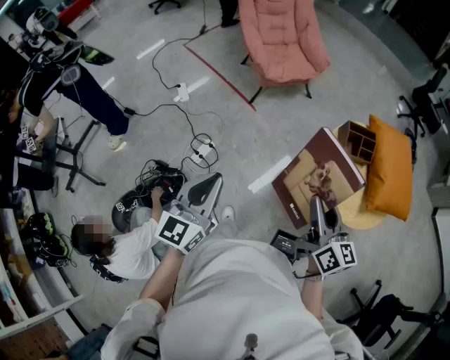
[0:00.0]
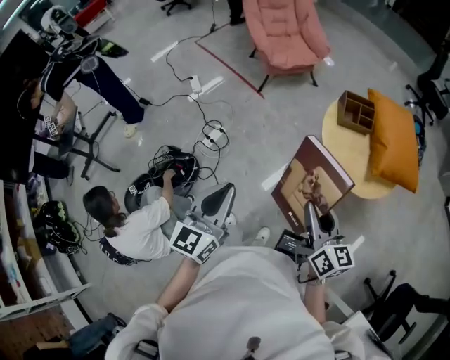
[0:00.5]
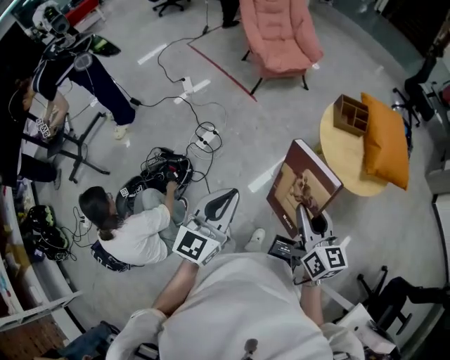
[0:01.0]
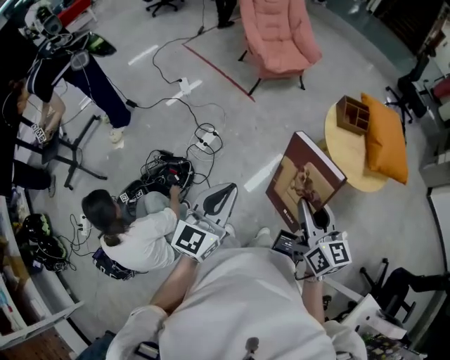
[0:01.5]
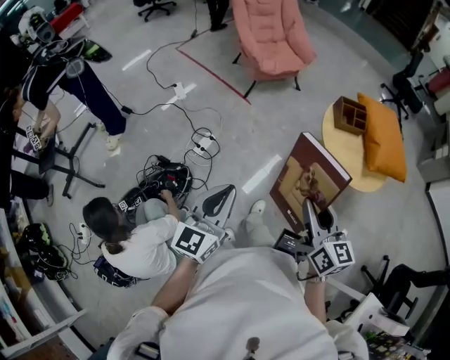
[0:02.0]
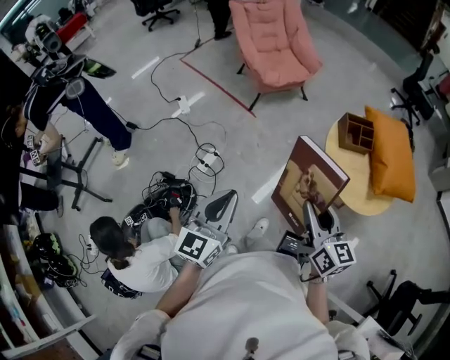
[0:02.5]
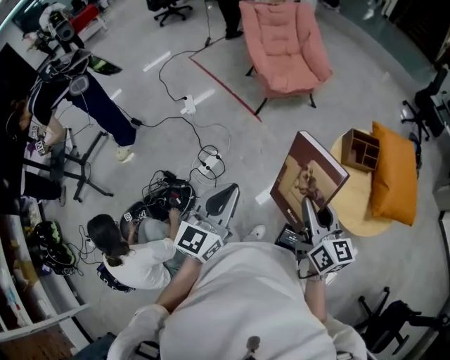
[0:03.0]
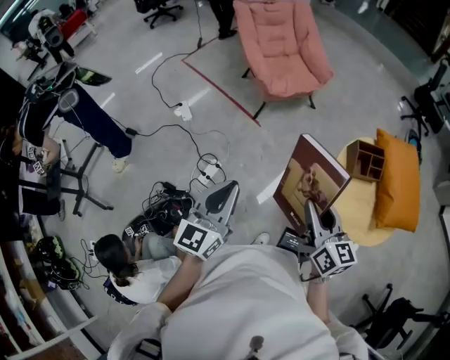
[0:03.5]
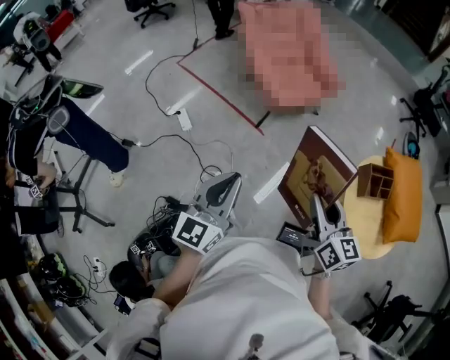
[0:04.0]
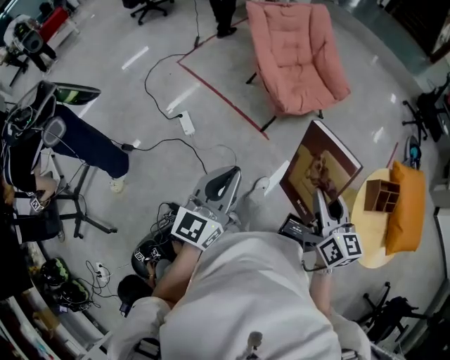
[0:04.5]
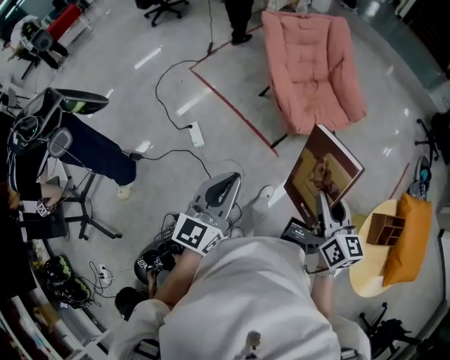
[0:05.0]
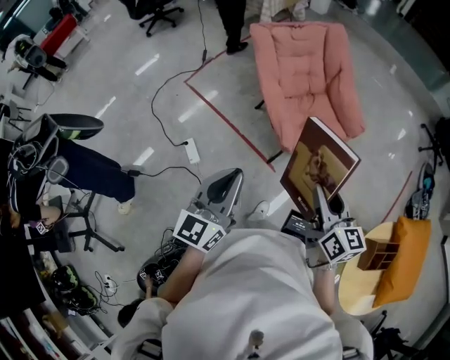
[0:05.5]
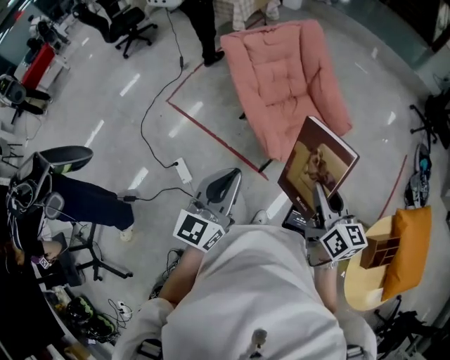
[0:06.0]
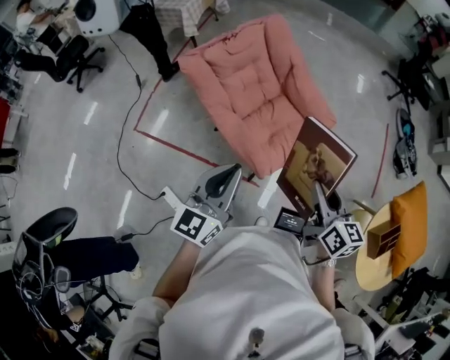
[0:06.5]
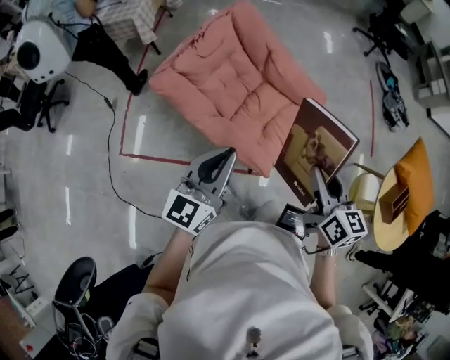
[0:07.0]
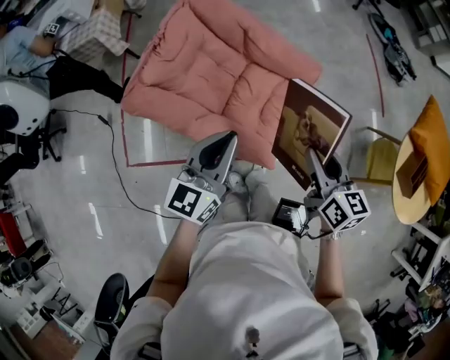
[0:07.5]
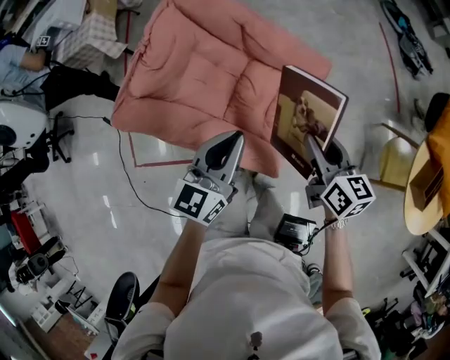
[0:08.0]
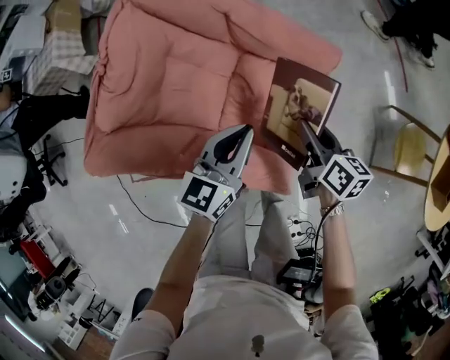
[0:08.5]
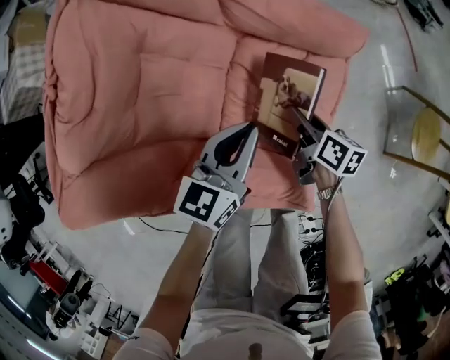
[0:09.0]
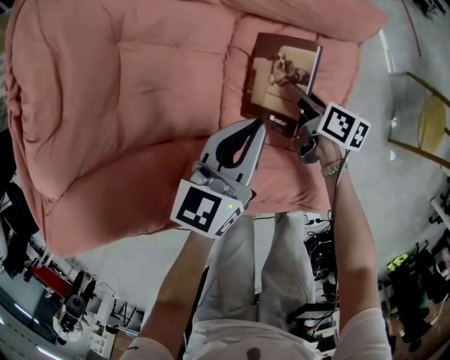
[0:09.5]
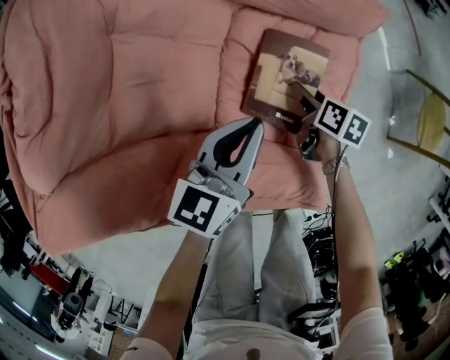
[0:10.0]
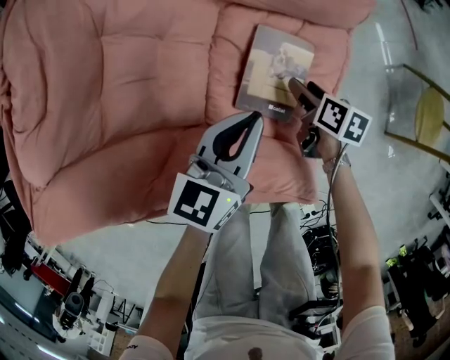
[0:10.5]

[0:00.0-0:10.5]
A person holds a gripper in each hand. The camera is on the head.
0:00.0 to 0:02.0: The left gripper is displaced backward by roughly 20 cm, while the right gripper travels backward and to the left by approximately 25 cm.
0:02.0 to 0:04.0: Both grippers are carried forward, about 40 cm.
0:04.0 to 0:06.5: The two grippers travel together, forward, some 60 cm. The left gripper turns by roughly 20 degrees, while the right gripper turns by some 20 degrees.
0:06.5 to 0:08.5: The right gripper goes approximately 30 cm downward, and rotates some 40 degrees, while the left gripper shifts by approximately 40 cm, and turns by approximately 40 degrees.
0:08.5 to 0:10.5: The left gripper moves downward, about 15 cm; the right gripper heads downward, covering roughly 25 cm, turns by about 20 degrees, and opens up.

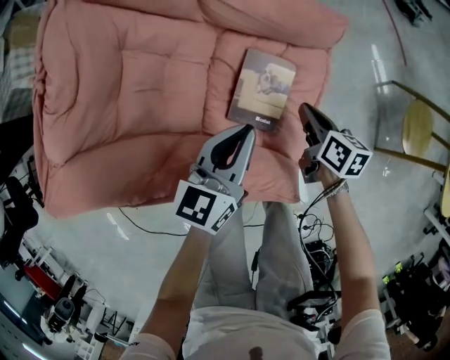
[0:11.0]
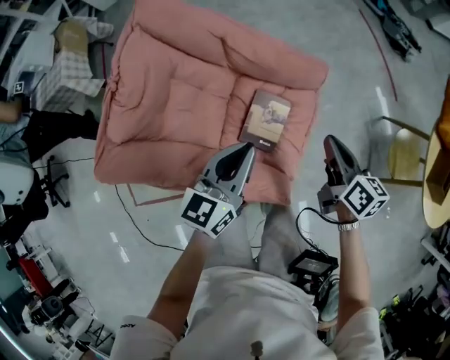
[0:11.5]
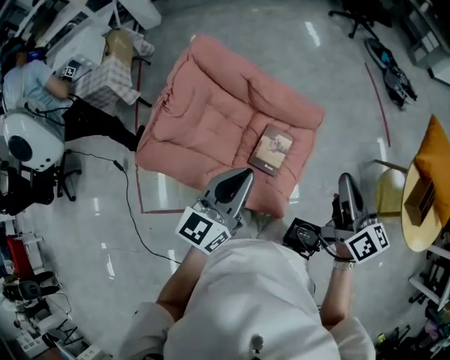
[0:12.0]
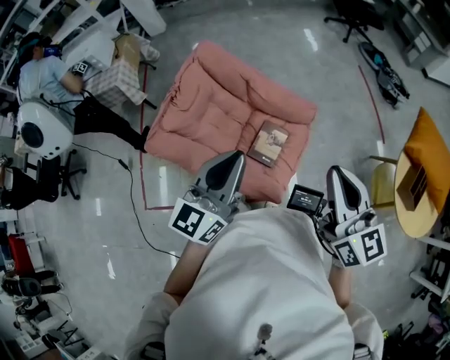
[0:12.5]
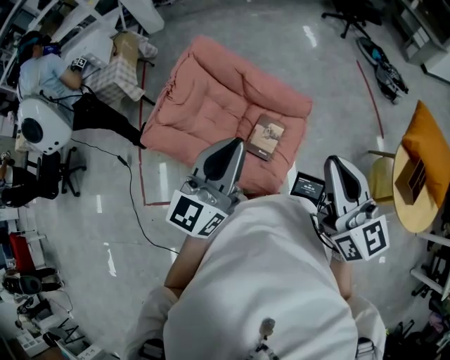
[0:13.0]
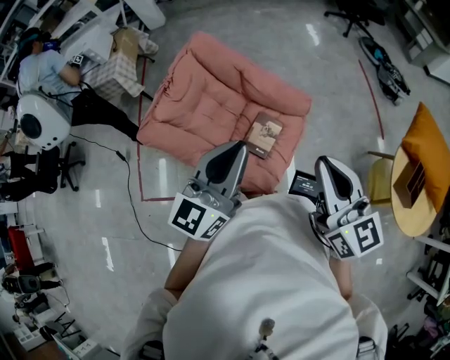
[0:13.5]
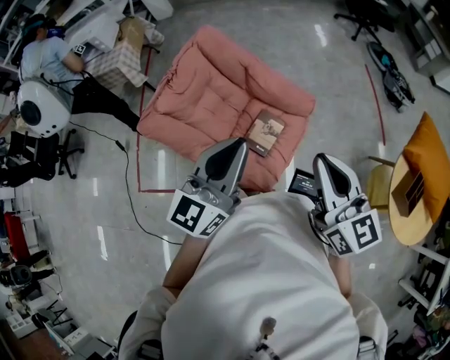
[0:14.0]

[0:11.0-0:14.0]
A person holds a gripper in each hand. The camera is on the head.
0:11.0 to 0:12.5: The two grippers go some 50 cm upward. The left gripper turns by approximately 30 degrees, while the right gripper tilts its fingers roughly 40 degrees upward.
0:12.5 to 0:14.0: The grippers stay close to where they were, moving slightly.

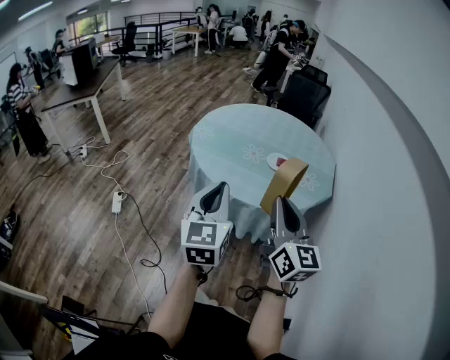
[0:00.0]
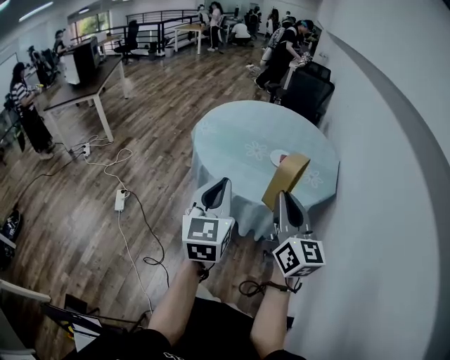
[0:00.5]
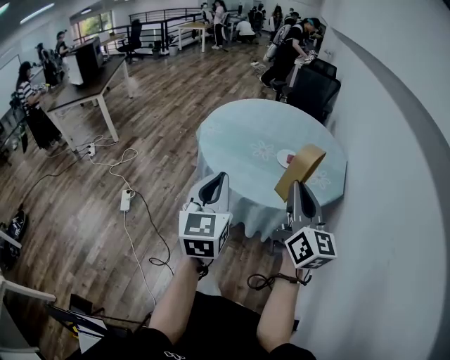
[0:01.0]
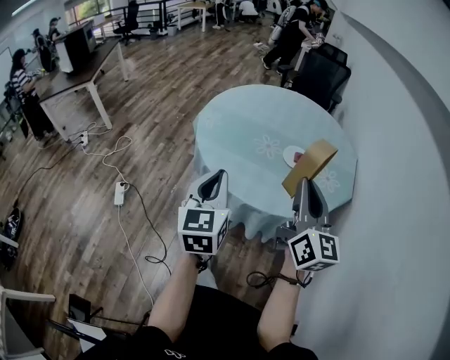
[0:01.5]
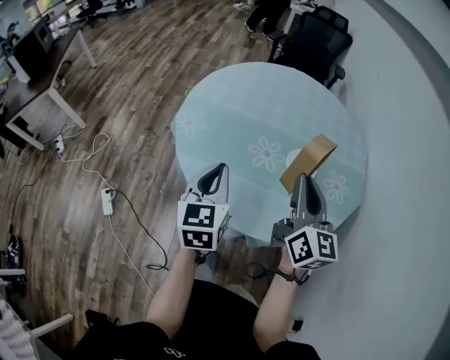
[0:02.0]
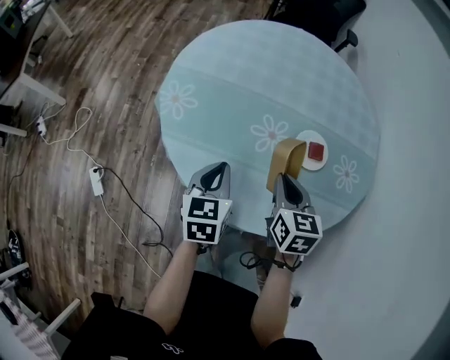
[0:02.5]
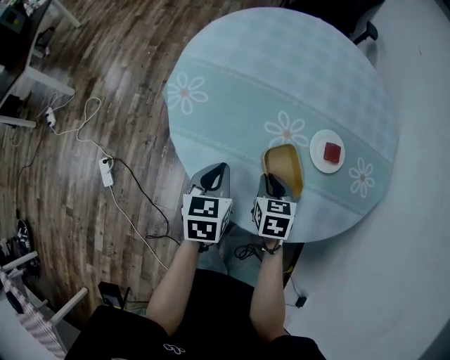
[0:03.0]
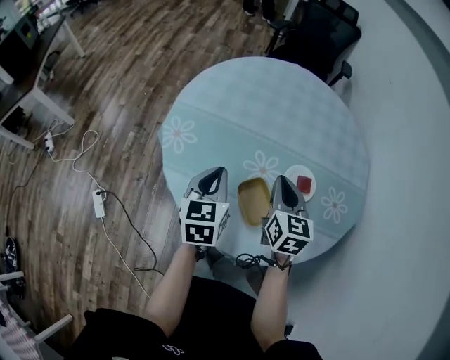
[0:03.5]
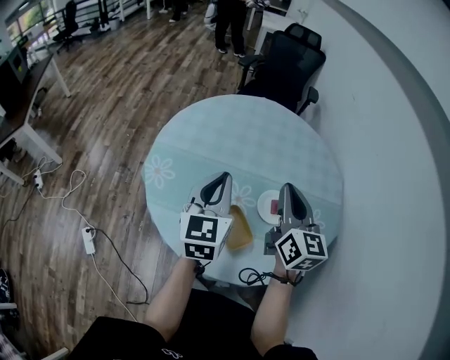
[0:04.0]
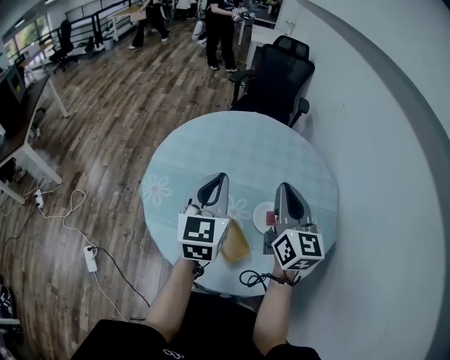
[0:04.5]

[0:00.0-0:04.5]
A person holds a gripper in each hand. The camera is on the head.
0:00.0 to 0:02.0: The two grippers travel together, forward, some 40 cm.
0:02.0 to 0:04.5: The left gripper is displaced forward and to the right by roughly 20 cm, and travels downward and back again, approximately 20 cm each way; the right gripper moves forward, some 15 cm, and reaches roughly 30 cm downward, then returns.

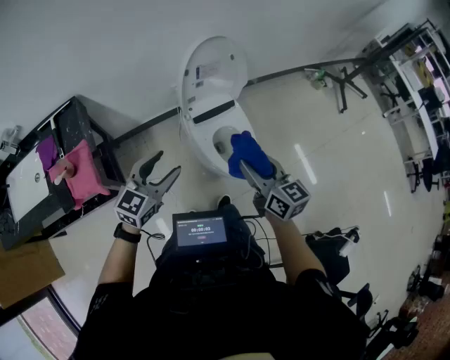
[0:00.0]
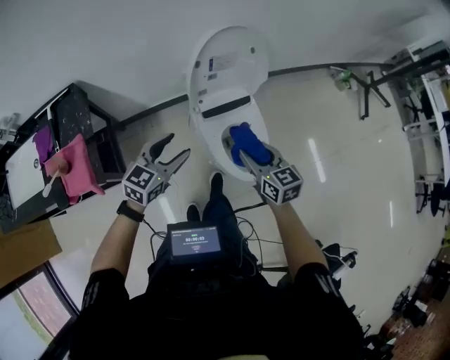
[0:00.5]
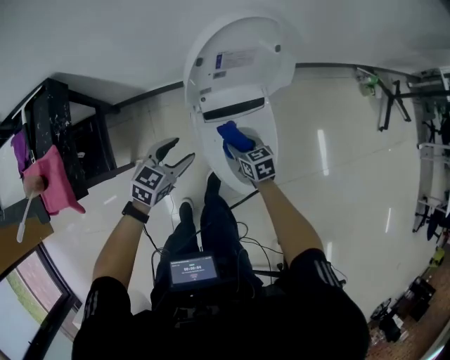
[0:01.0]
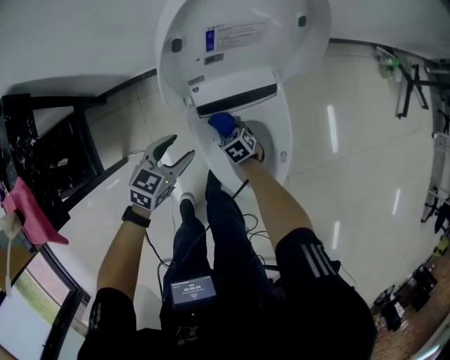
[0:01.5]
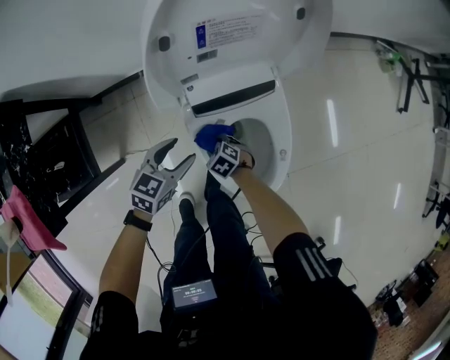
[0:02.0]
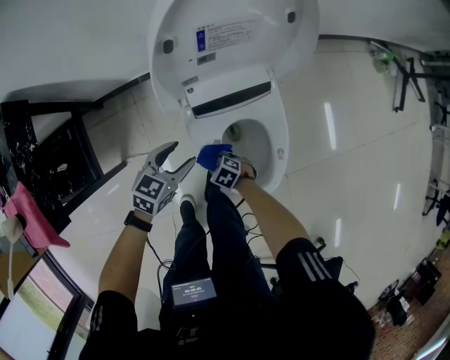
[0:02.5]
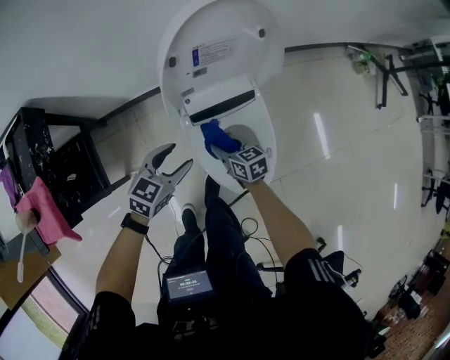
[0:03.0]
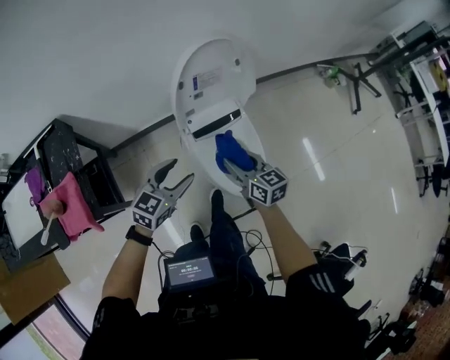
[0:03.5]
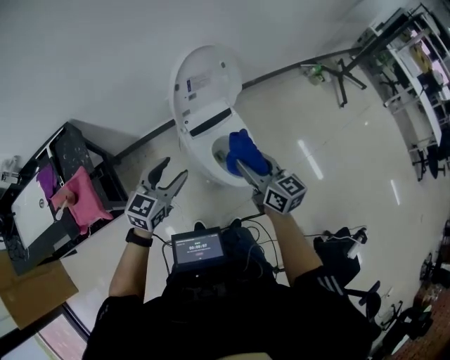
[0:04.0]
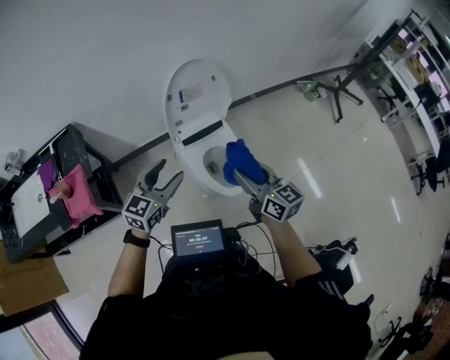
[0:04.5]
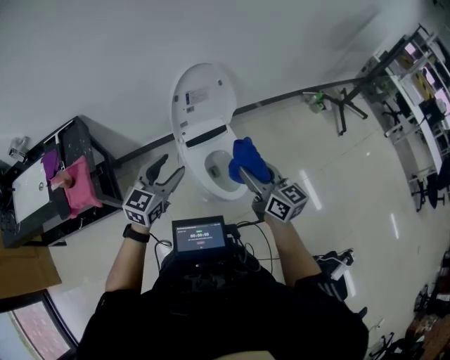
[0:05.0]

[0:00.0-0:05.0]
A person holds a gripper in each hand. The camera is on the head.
0:00.0 to 0:02.5: The right gripper moves downward, approximately 70 cm, and points its fingers roughly 50 degrees further downward; the left gripper is displaced downward by some 40 cm, and rotates roughly 30 degrees.
0:02.5 to 0:05.0: The left gripper moves upward, some 40 cm, and changes its angle by roughly 30 degrees, while the right gripper heads upward, covering roughly 70 cm, and tilts its fingers some 60 degrees upward.

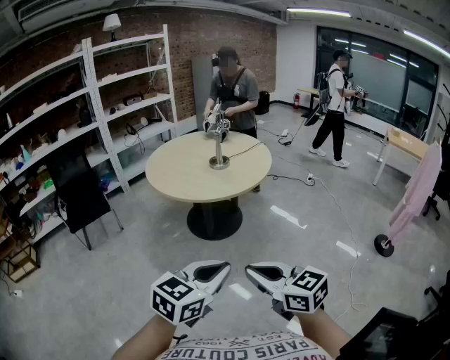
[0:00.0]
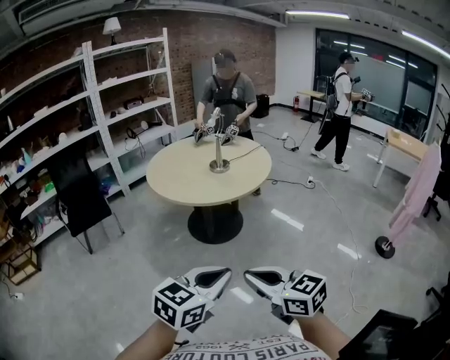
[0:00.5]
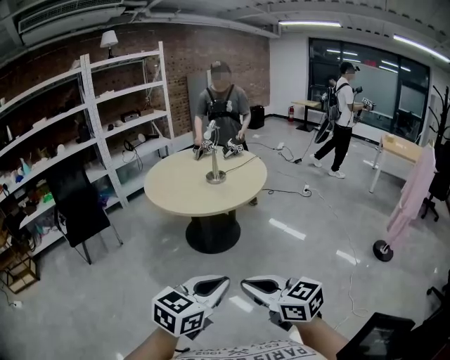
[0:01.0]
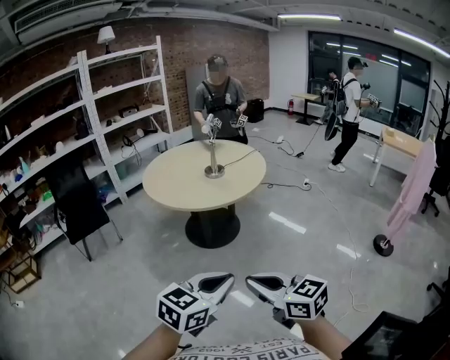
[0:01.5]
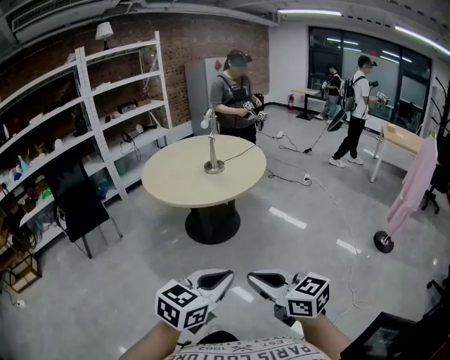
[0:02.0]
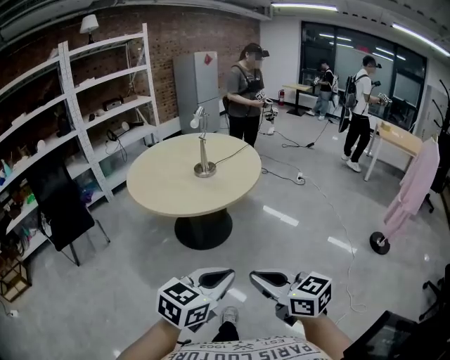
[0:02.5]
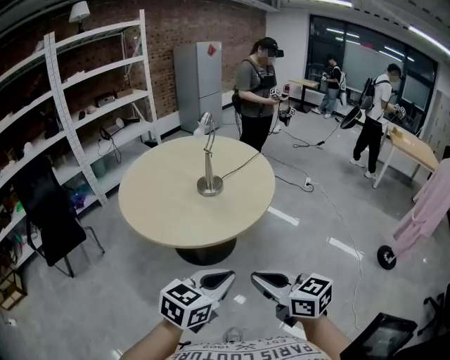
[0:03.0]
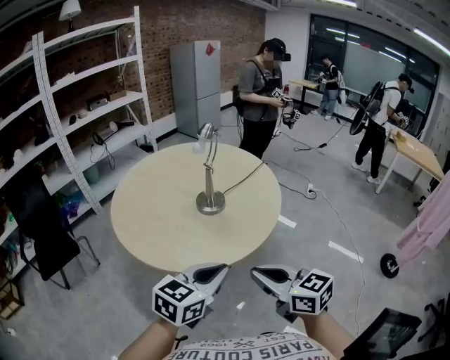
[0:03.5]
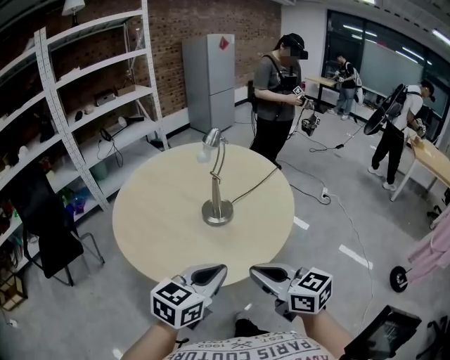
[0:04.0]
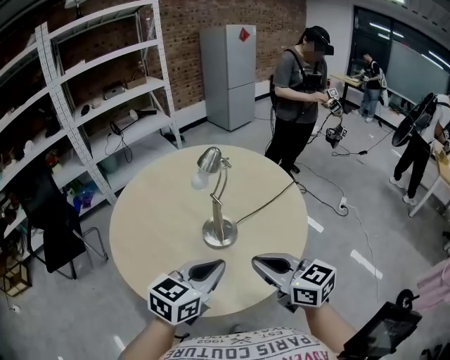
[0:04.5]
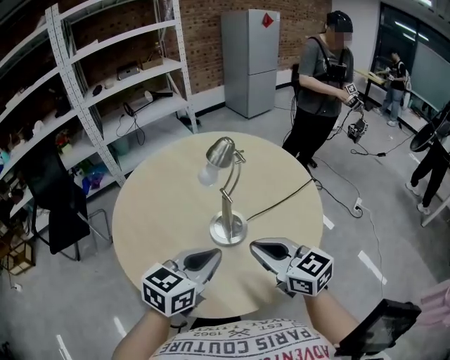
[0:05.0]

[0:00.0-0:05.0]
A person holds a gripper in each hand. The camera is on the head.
0:00.0 to 0:02.5: The grippers both shift forward by approximately 10 cm.
0:02.5 to 0:05.0: The pair of grippers is taken forward, some 60 cm. The left gripper turns by approximately 20 degrees.
